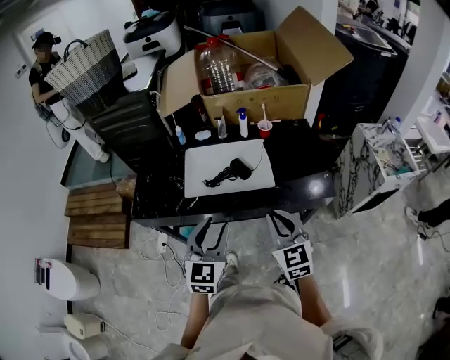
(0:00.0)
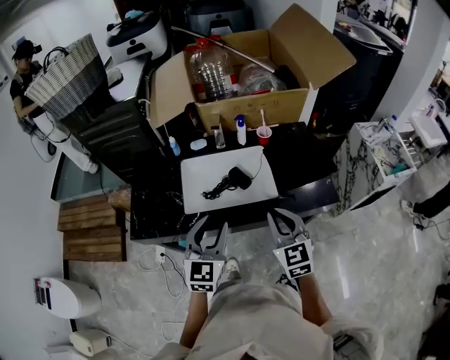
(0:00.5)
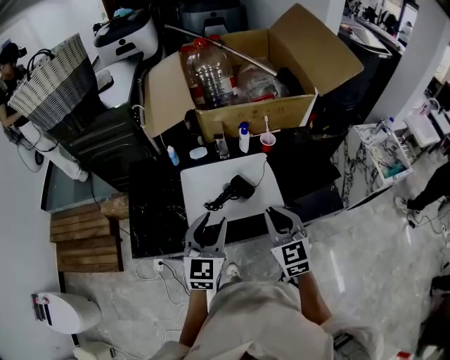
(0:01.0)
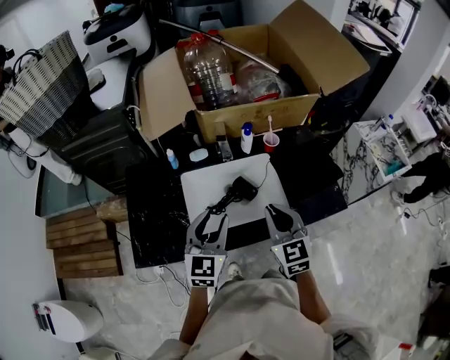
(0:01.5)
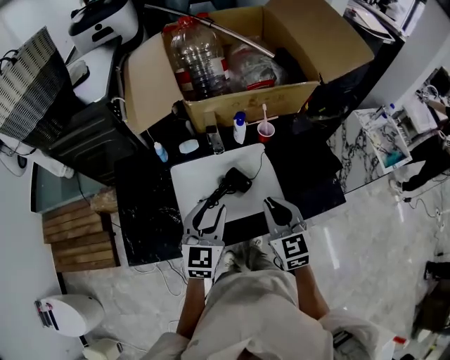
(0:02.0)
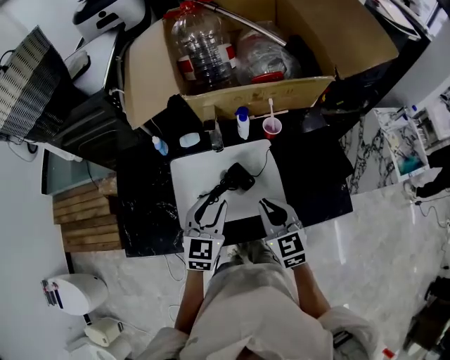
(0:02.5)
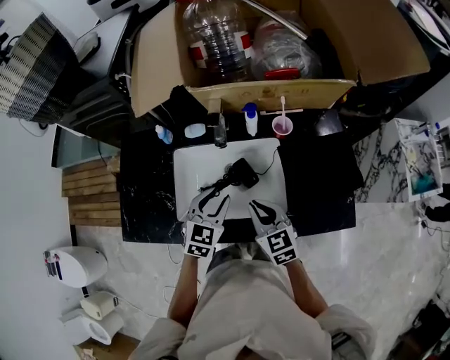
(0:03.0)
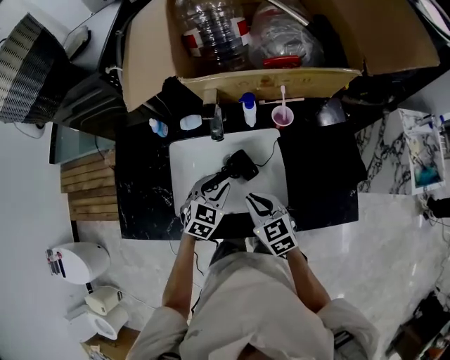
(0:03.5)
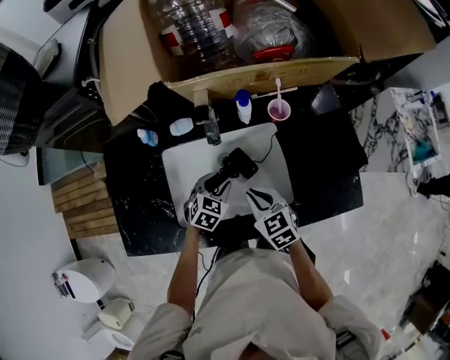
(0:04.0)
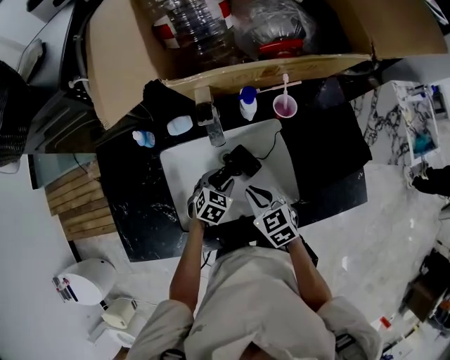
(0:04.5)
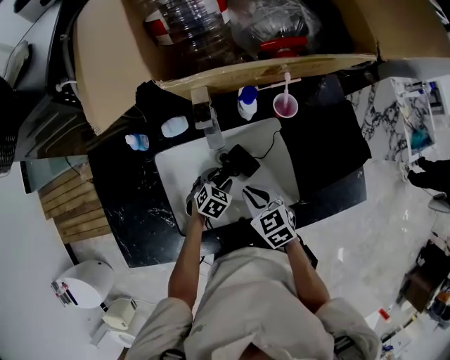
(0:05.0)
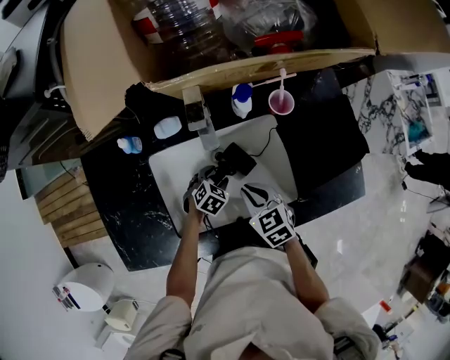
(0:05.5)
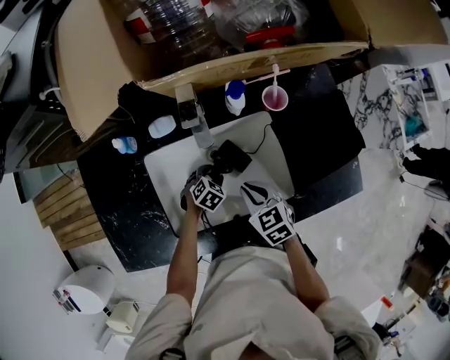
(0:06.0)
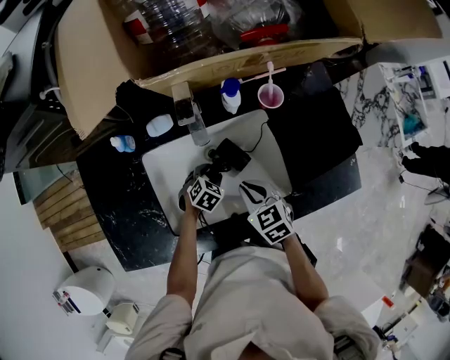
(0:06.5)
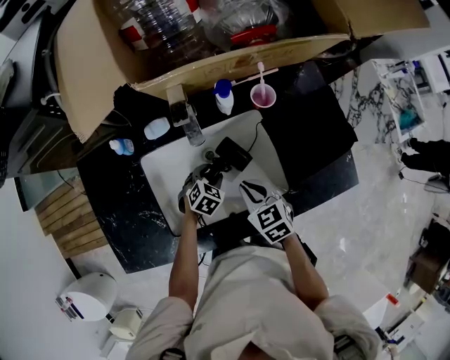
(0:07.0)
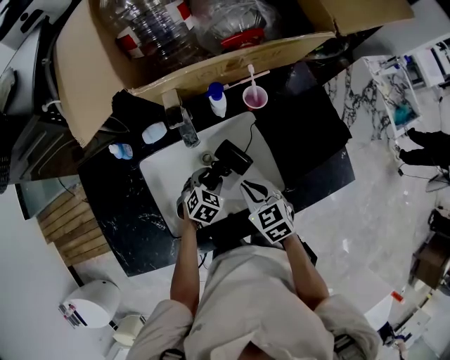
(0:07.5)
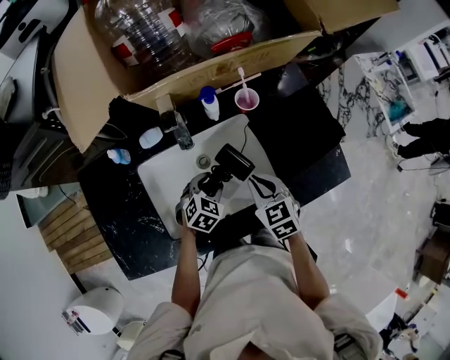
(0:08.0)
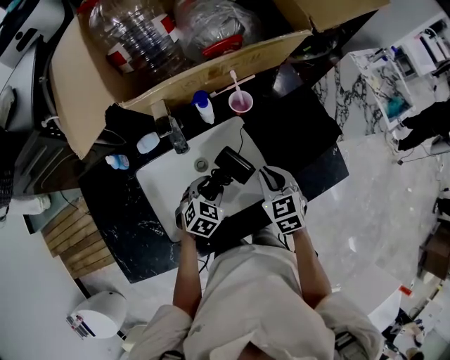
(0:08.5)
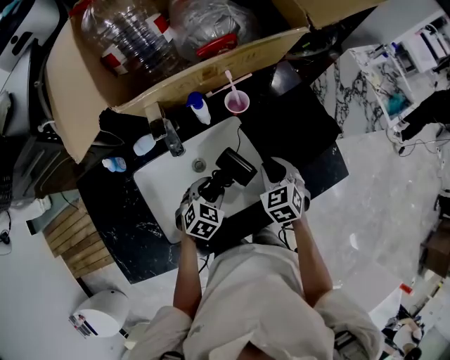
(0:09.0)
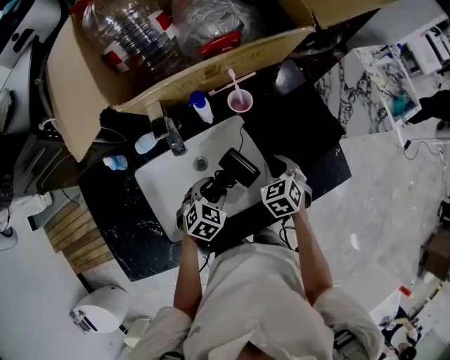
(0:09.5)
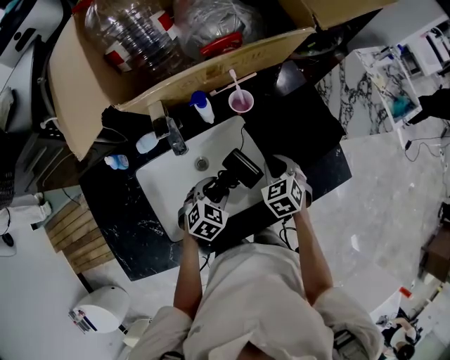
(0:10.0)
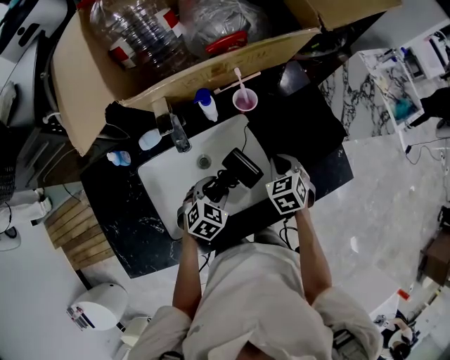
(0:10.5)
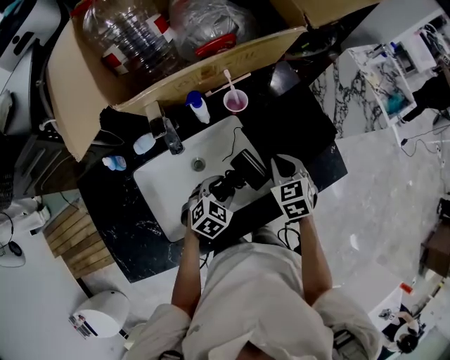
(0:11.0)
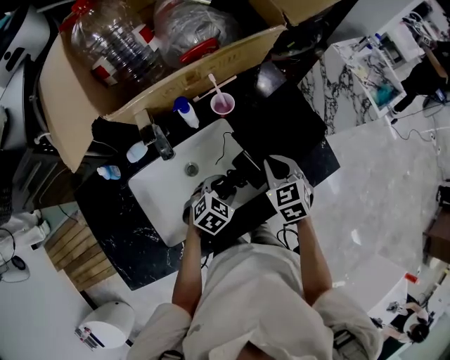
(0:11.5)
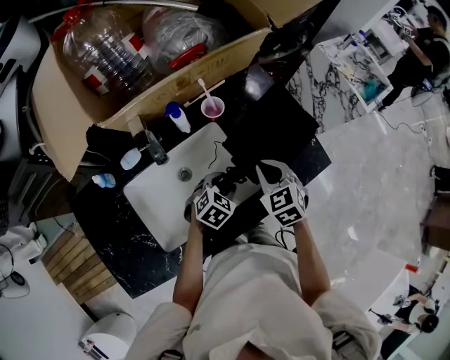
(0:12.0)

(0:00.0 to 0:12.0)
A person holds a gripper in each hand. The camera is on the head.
0:00.0 - 0:02.0: The two grippers go about 20 cm forward.
0:02.0 - 0:04.0: Both grippers travel together downward and forward, roughly 20 cm. The left gripper tips its fingers downward by approximately 40 degrees. The right gripper swivels approximately 30 degrees.
0:04.0 - 0:06.0: The right gripper shifts by roughly 5 cm. Meanwhile the left gripper goes roughly 15 cm downward, and changes its angle by roughly 20 degrees.
0:06.0 - 0:08.0: The right gripper travels to the right by about 5 cm, while the left gripper moves upward, roughly 10 cm.
0:08.0 - 0:10.0: The right gripper travels forward and to the right by approximately 10 cm.
0:10.0 - 0:12.0: The right gripper shifts some 10 cm upward. The left gripper heads to the right, covering approximately 10 cm.

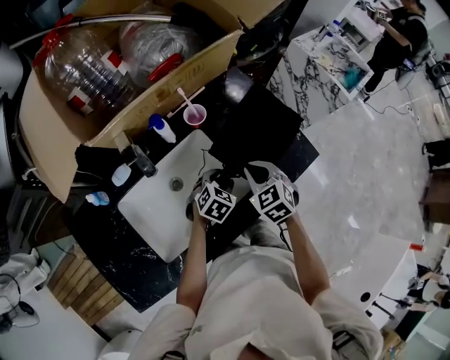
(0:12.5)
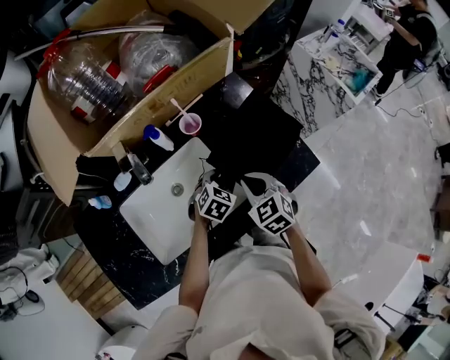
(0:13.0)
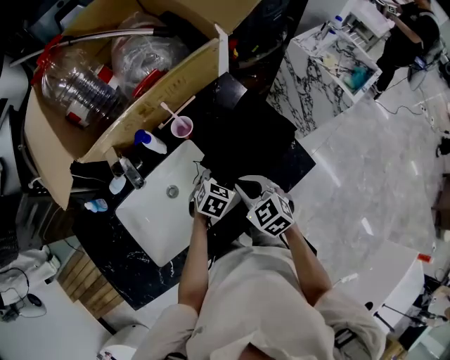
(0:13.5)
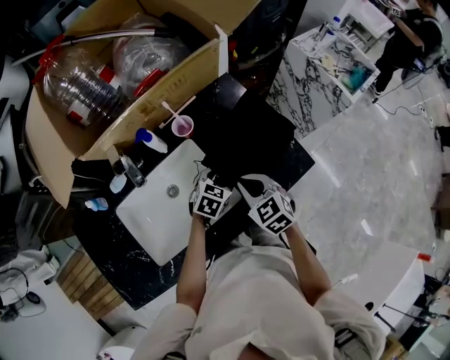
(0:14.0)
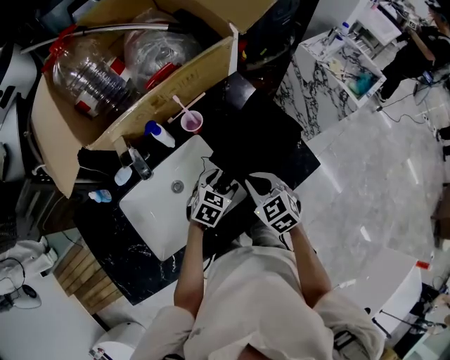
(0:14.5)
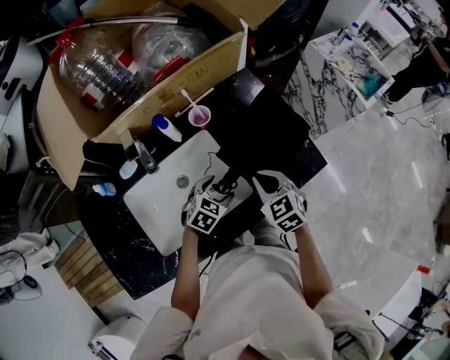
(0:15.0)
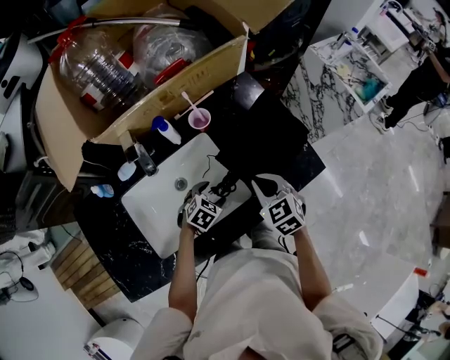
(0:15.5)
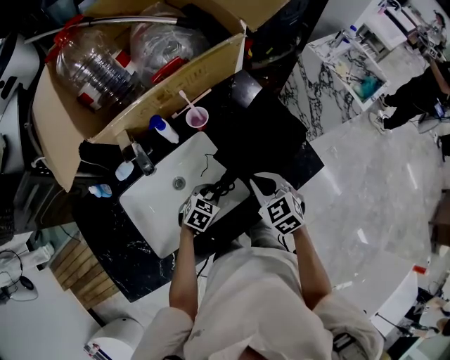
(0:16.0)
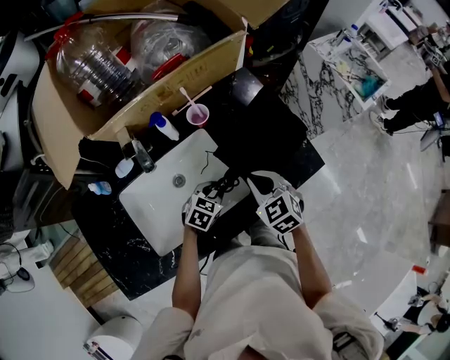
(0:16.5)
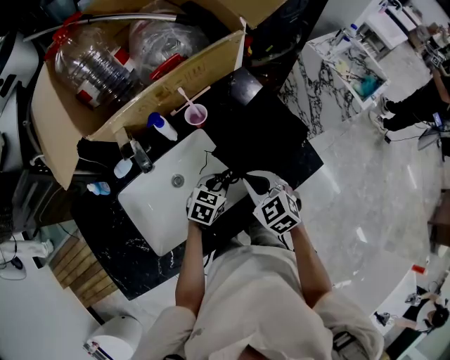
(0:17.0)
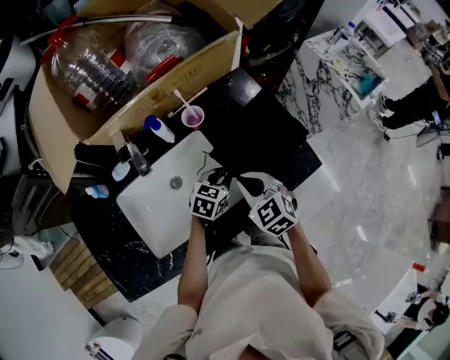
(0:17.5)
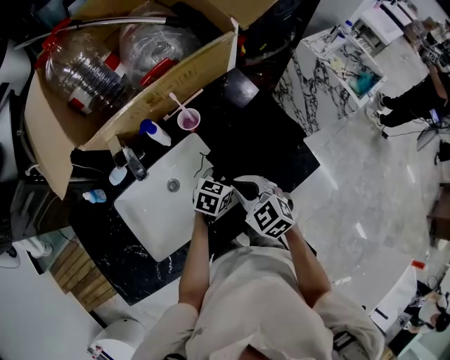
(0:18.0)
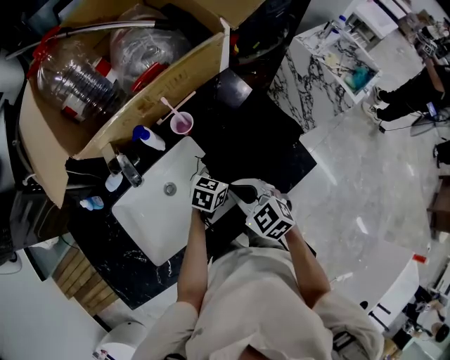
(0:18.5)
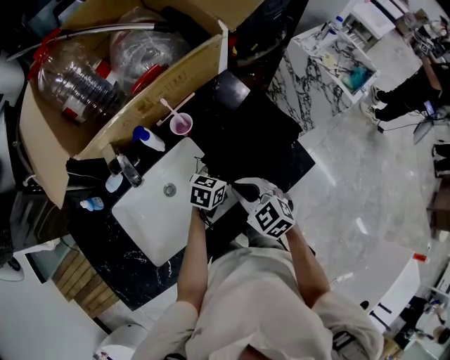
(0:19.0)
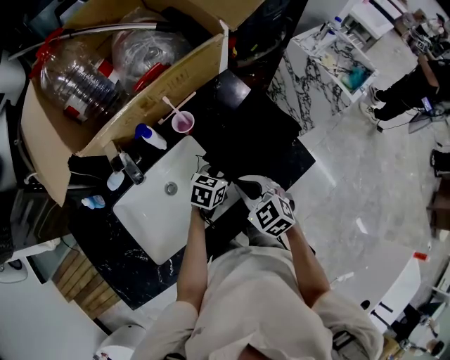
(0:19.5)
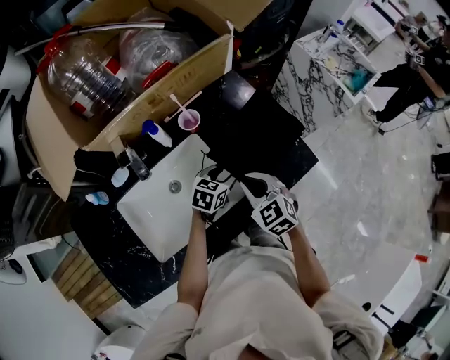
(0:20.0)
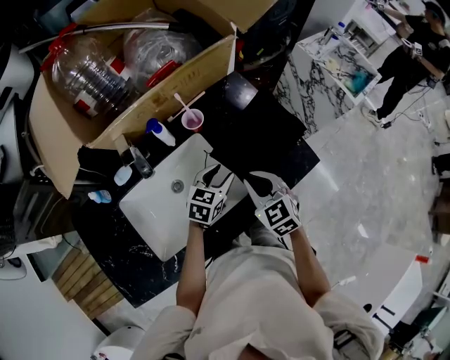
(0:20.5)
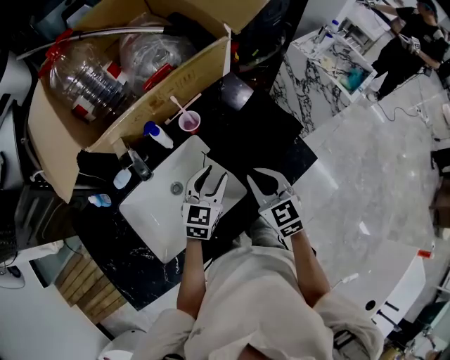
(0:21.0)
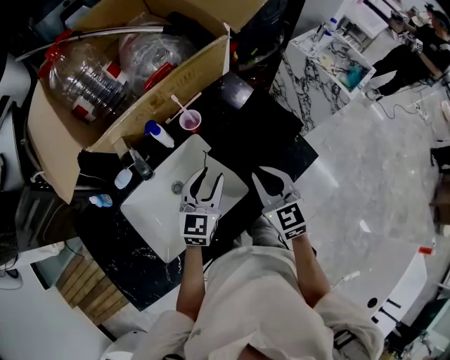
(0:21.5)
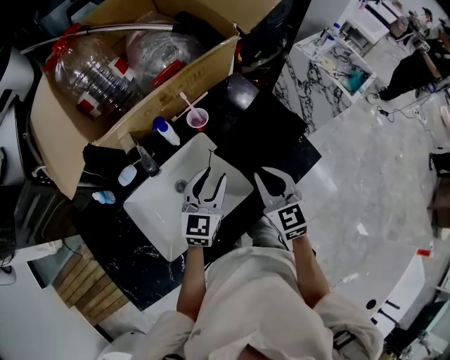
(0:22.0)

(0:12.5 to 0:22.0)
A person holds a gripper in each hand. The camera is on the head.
0:14.5 - 0:16.5: The left gripper moves roughly 5 cm, and closes up.
0:16.5 - 0:18.0: The left gripper shifts some 10 cm to the right and forward.
0:18.0 - 0:20.0: The left gripper opens.
0:20.0 - 0:22.0: The left gripper heads upward and to the left, covering approximately 15 cm, and changes its angle by some 30 degrees; the right gripper is displaced upward by roughly 5 cm, and swivels approximately 20 degrees.

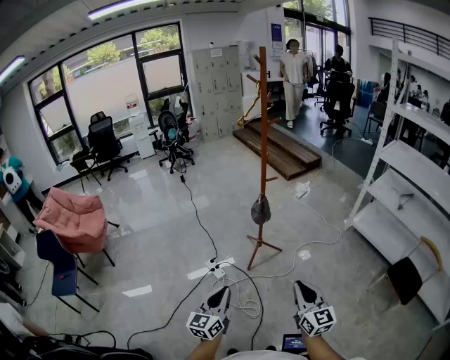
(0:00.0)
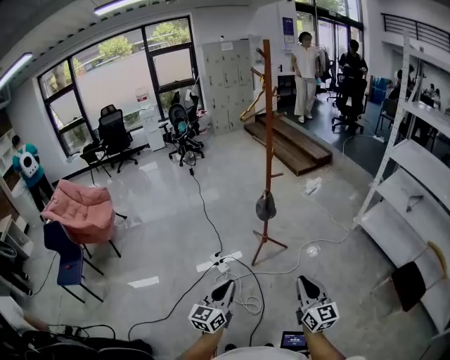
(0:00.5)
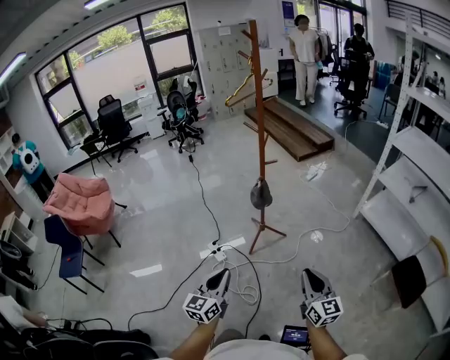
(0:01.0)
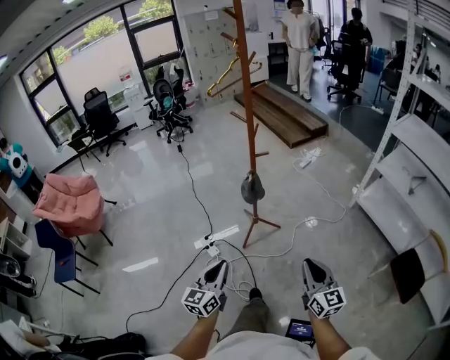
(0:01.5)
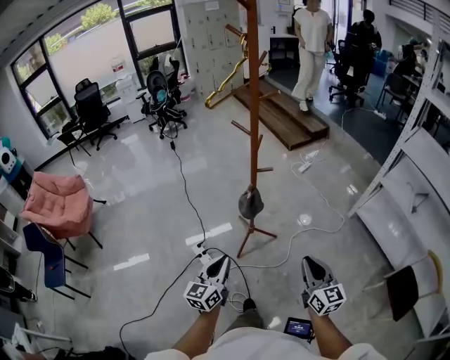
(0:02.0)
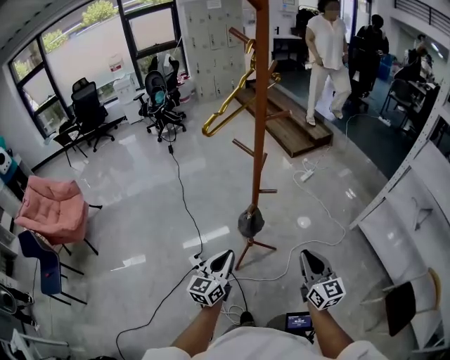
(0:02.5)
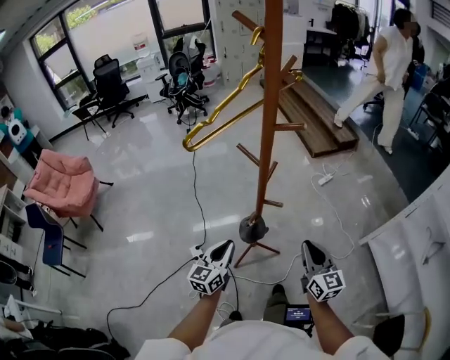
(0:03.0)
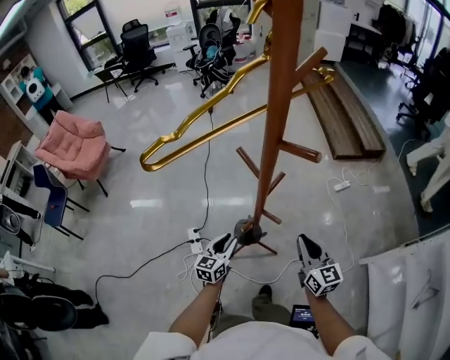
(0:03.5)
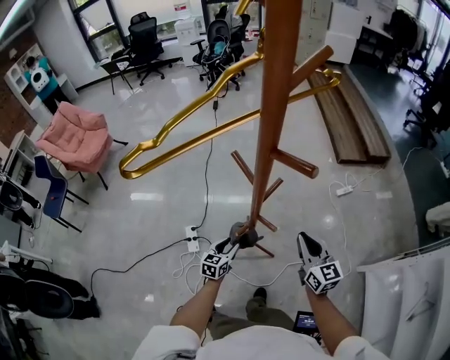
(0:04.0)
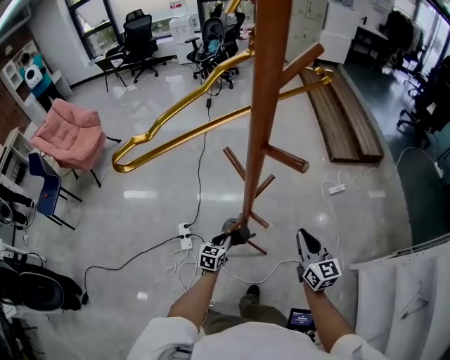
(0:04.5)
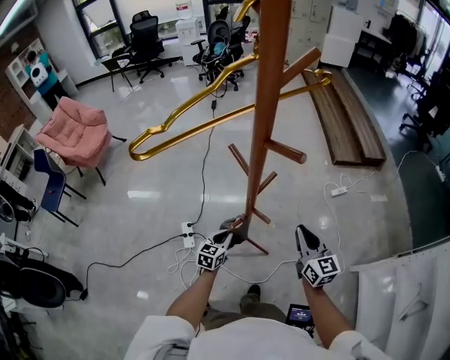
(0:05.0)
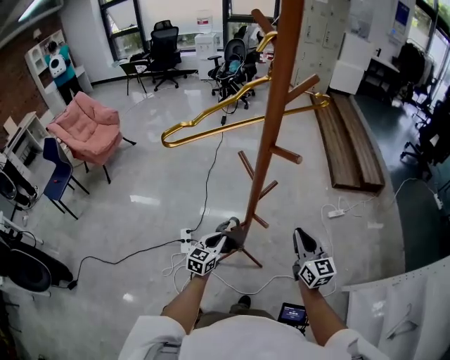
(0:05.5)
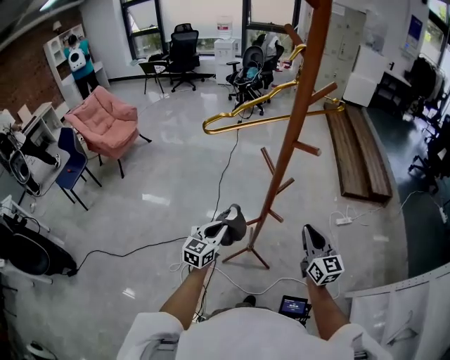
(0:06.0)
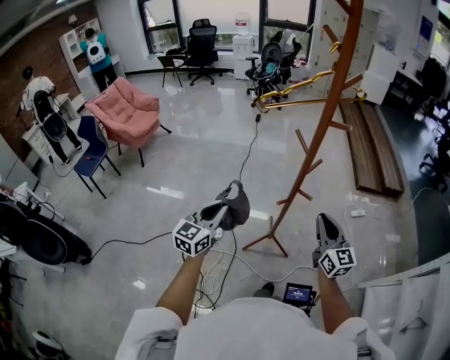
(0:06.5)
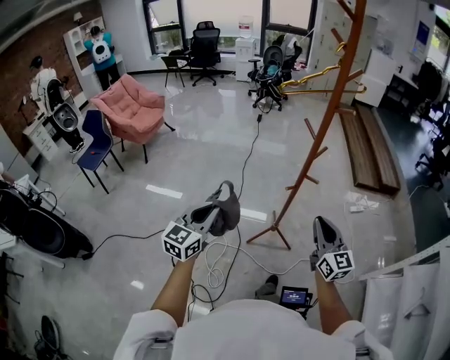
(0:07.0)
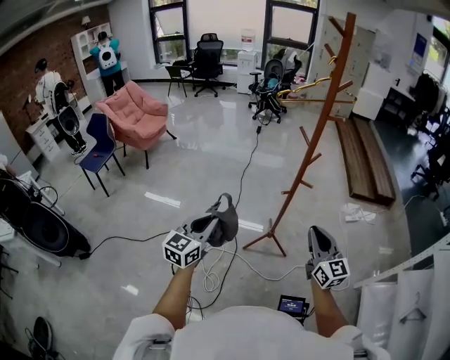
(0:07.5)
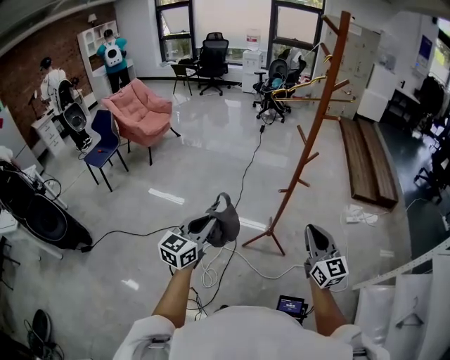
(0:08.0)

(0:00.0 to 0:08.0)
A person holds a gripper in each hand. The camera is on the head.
0:00.0 - 0:02.0: The left gripper shifts approximately 30 cm forward. Meanwhile the right gripper goes roughly 35 cm forward and to the right.
0:02.0 - 0:04.0: The right gripper travels forward by roughly 50 cm, and swivels approximately 30 degrees. Meanwhile the left gripper shifts roughly 50 cm forward and downward, changes its angle by some 30 degrees, and opens its fingers.
0:04.0 - 0:06.0: The left gripper heads upward, covering some 25 cm, rotates roughly 20 degrees, and closes, while the right gripper heads upward, covering about 10 cm.
0:06.0 - 0:08.0: The left gripper travels backward, upward and to the left by roughly 40 cm. Meanwhile the right gripper shifts some 30 cm backward and to the left.
